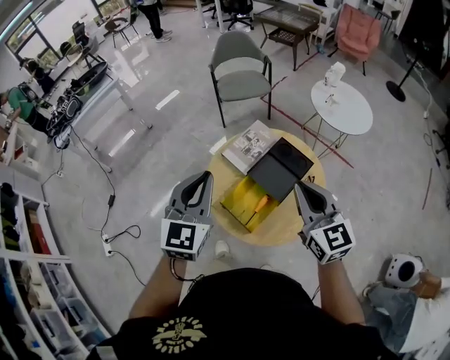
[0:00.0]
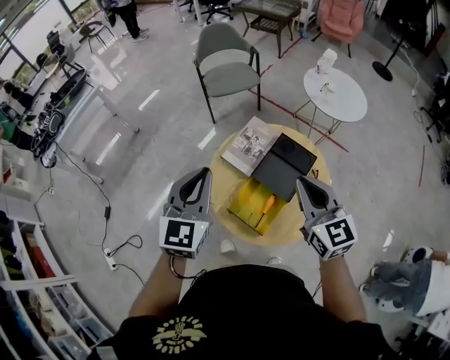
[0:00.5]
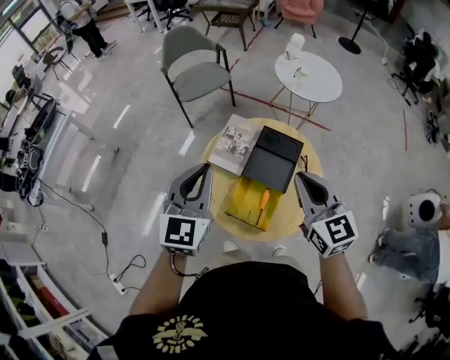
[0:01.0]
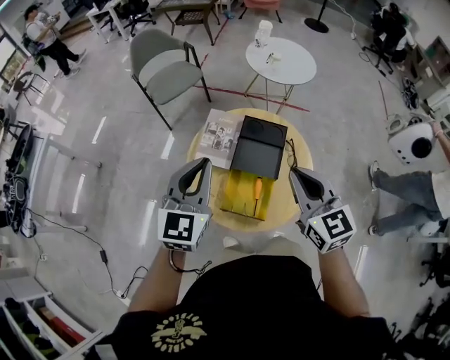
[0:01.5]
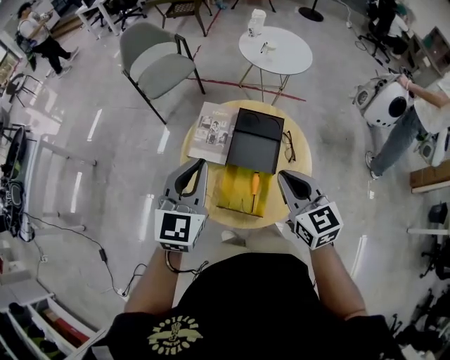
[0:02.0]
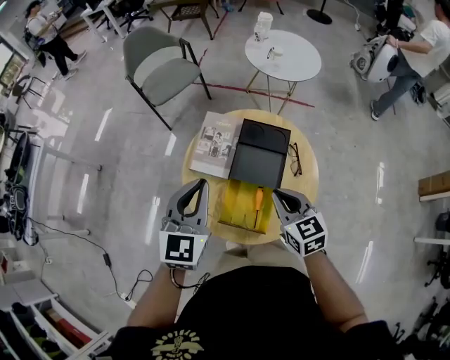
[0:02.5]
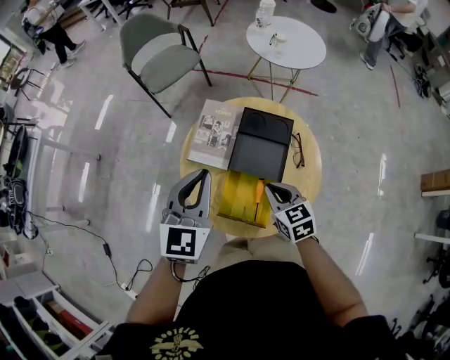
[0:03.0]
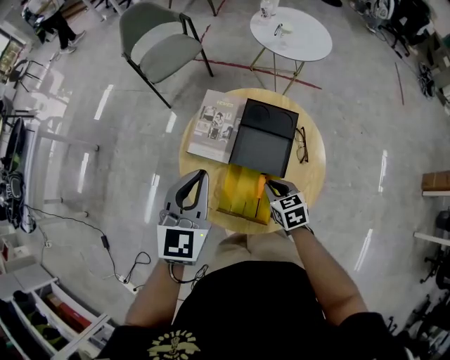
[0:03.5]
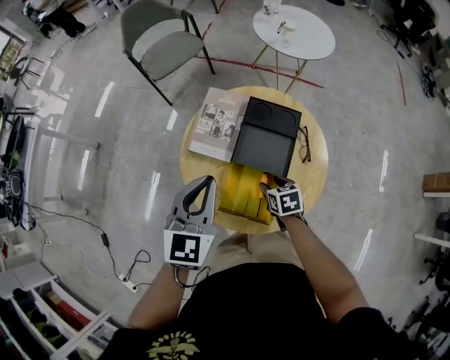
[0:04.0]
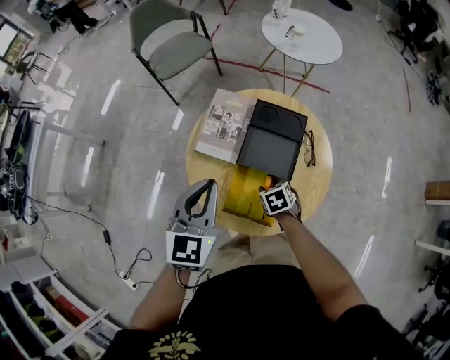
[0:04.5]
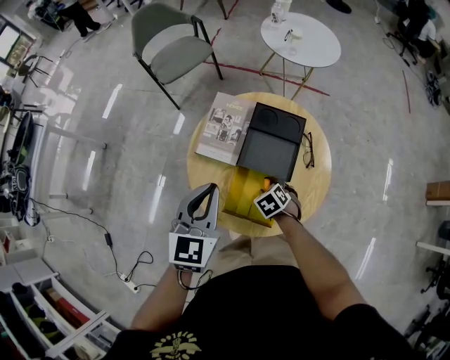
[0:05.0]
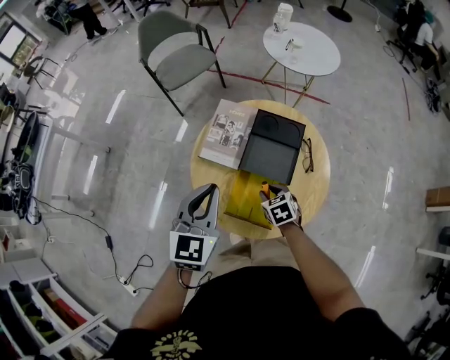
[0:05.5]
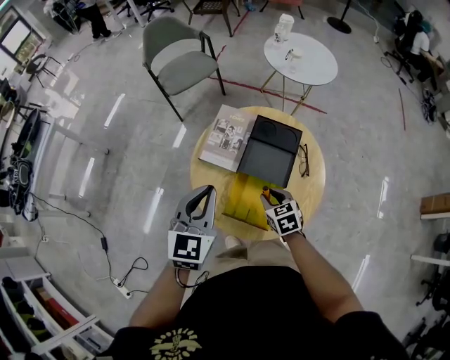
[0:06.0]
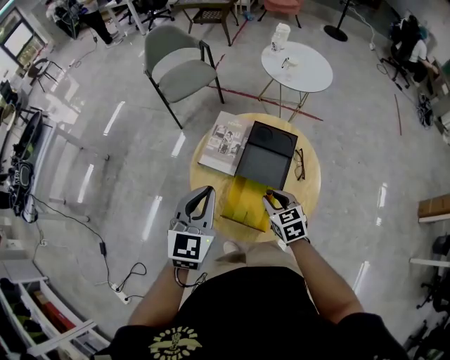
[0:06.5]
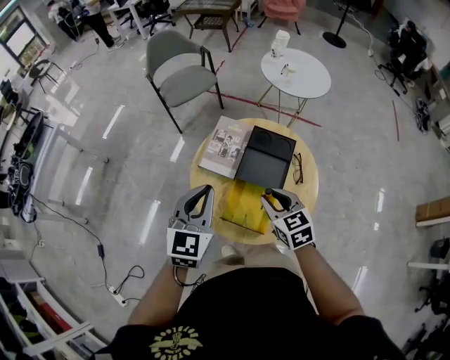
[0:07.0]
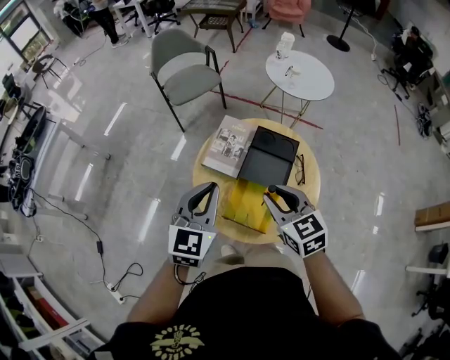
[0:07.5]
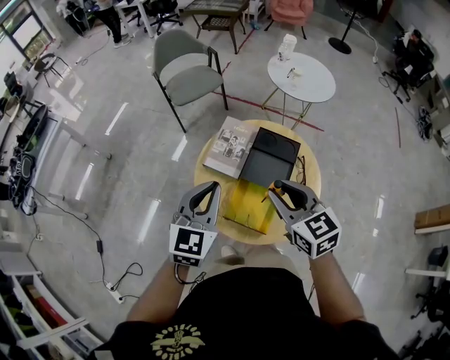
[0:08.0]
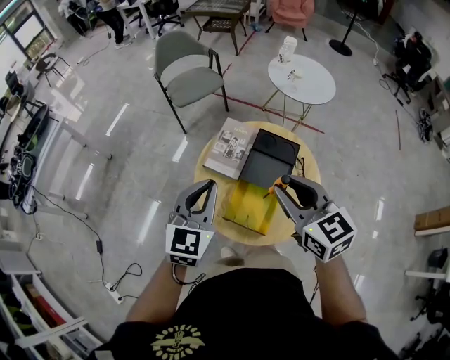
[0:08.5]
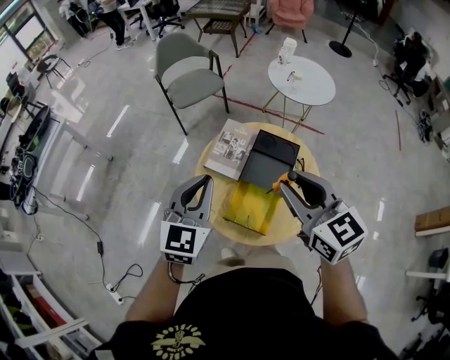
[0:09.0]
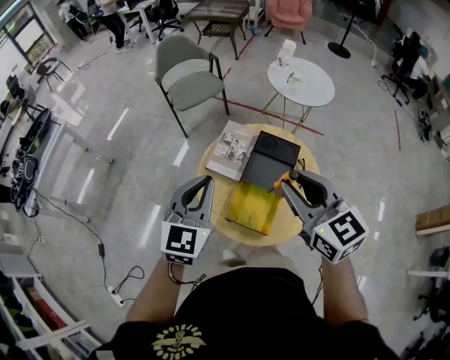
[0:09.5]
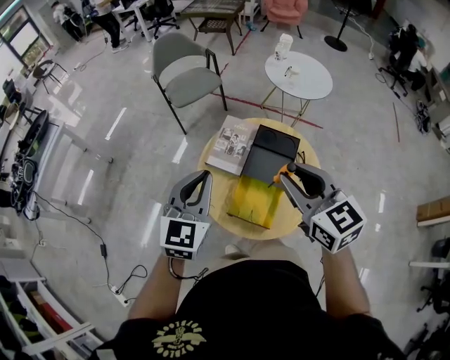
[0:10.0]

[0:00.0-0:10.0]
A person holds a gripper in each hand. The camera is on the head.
0:00.0 to 0:02.0: The right gripper goes roughly 10 cm downward, and swivels roughly 30 degrees; the left gripper ends up approximately 15 cm from where it was, and turns by approximately 30 degrees.
0:02.0 to 0:04.0: The right gripper moves downward, some 30 cm, angles its fingers downward, by about 40 degrees, and opens its fingers; the left gripper travels downward by approximately 10 cm.
0:04.0 to 0:06.0: The right gripper goes approximately 5 cm upward, and closes up.
0:06.0 to 0:08.0: The right gripper is displaced upward by some 25 cm, and swivels some 20 degrees.
0:08.0 to 0:10.0: The right gripper heads upward, covering roughly 10 cm.

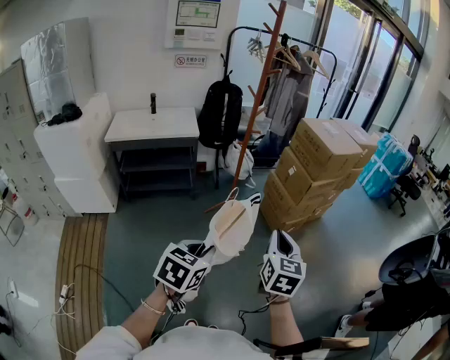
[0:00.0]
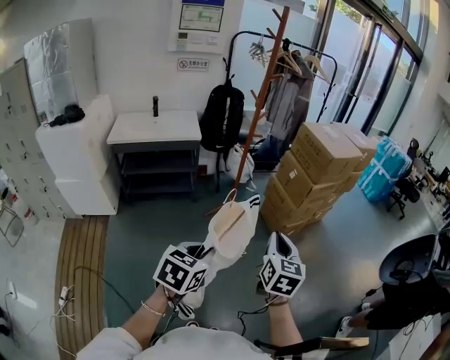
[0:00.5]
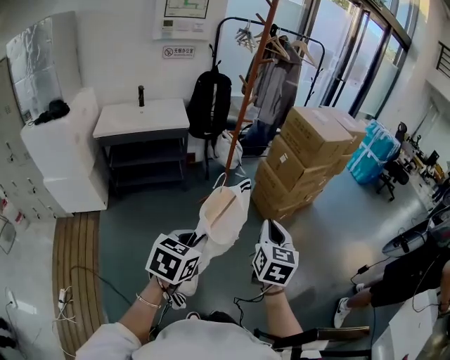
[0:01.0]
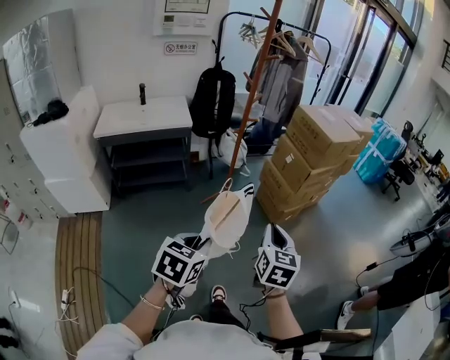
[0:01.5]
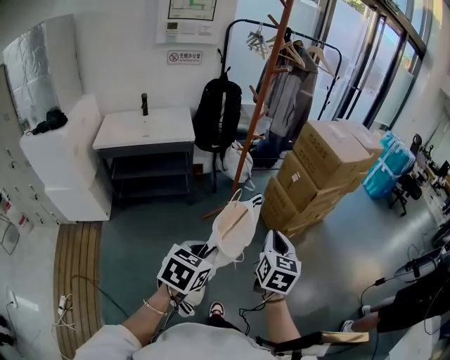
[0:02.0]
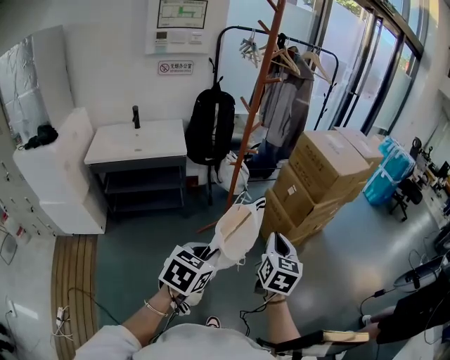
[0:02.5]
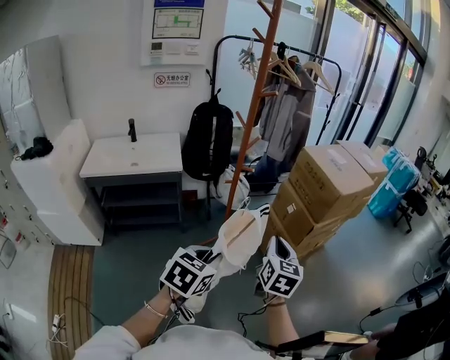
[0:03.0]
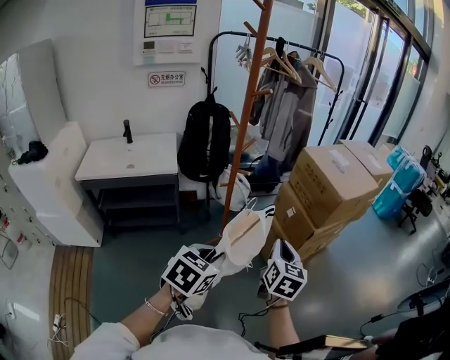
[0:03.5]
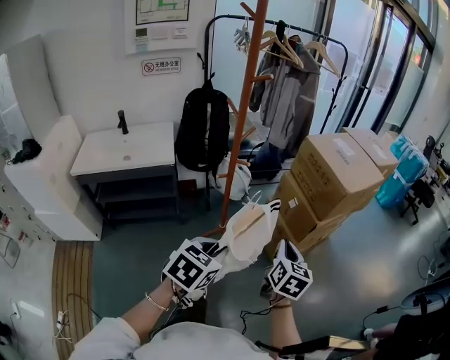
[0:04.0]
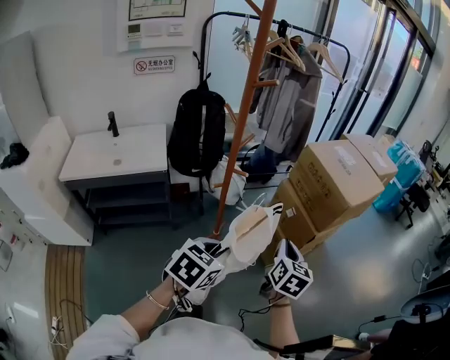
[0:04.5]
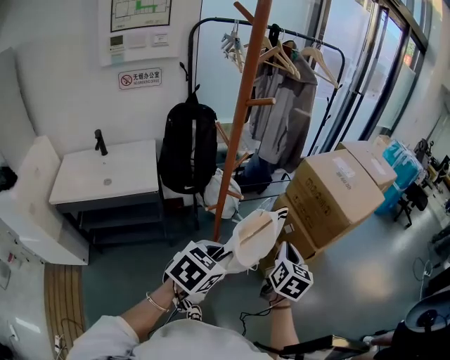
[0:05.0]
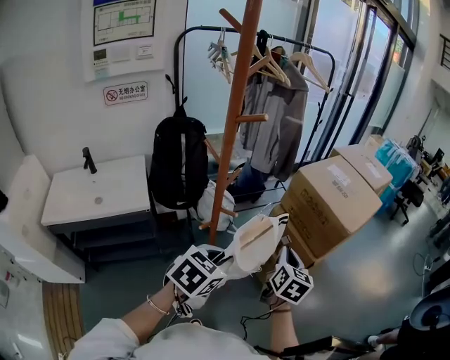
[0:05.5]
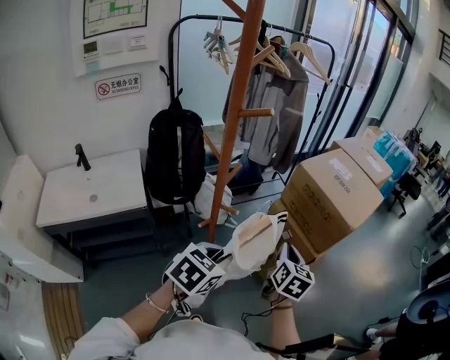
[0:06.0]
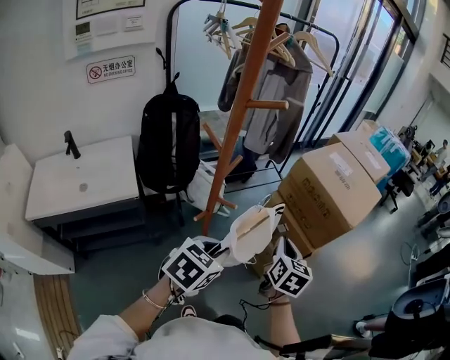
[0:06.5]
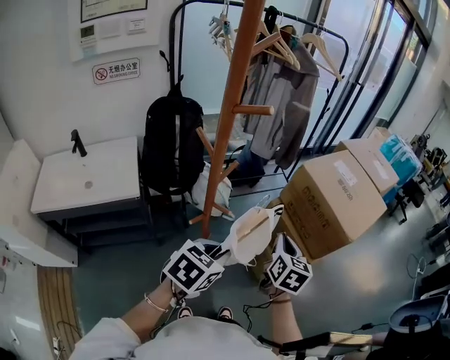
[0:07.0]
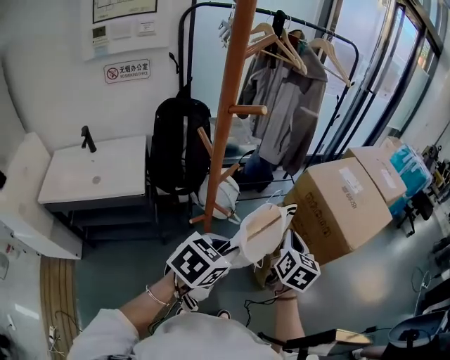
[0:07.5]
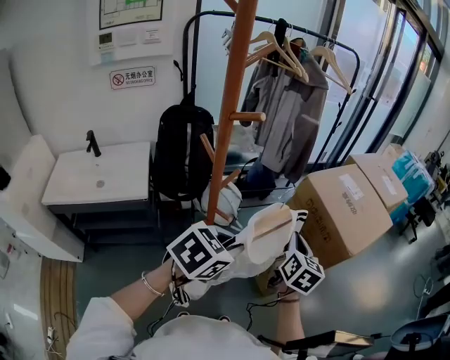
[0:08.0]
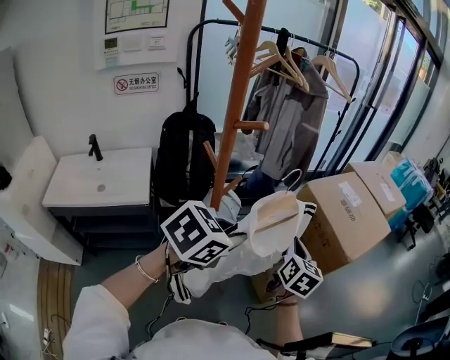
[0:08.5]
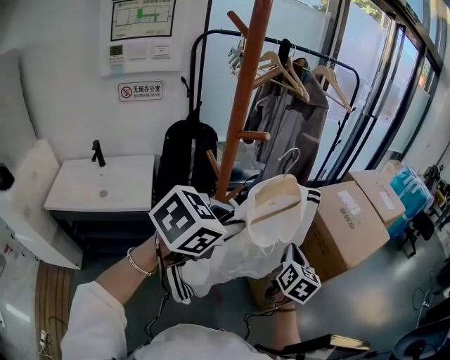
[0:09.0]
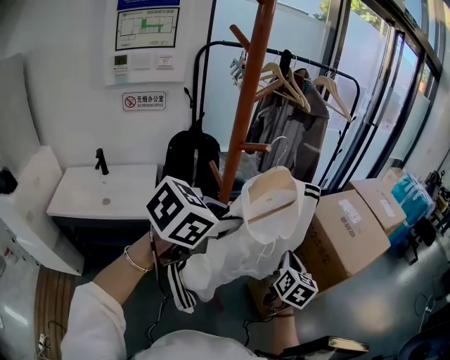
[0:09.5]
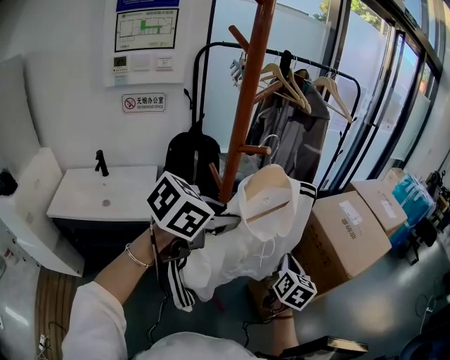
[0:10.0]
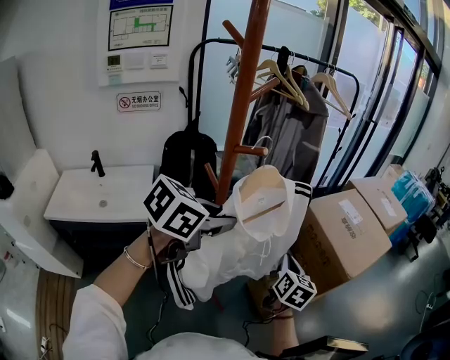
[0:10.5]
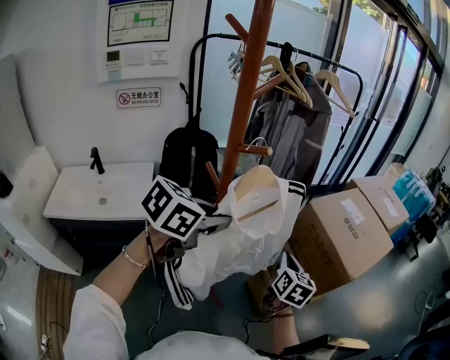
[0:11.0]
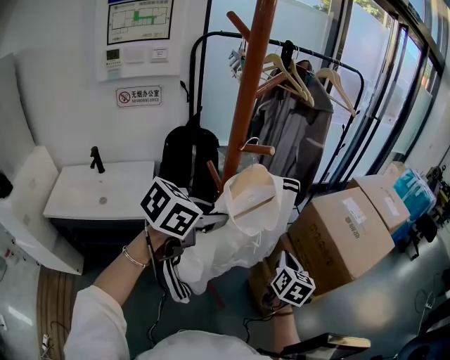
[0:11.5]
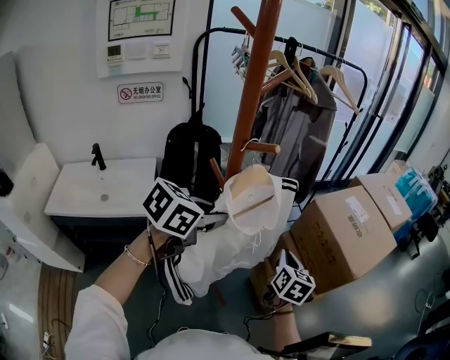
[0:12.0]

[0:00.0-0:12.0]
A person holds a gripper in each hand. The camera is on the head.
0:00.0 to 0:02.0: The left gripper moves forward, about 10 cm; the right gripper is displaced forward and to the left by roughly 10 cm.
0:02.0 to 0:04.0: The grippers both shift forward by some 25 cm.
0:04.0 to 0:06.0: Both grippers travel together forward and to the left, about 20 cm.
0:06.0 to 0:08.0: The right gripper travels forward by roughly 10 cm. The left gripper heads forward and upward, covering approximately 10 cm.
0:08.0 to 0:10.0: The left gripper moves upward and to the left, some 15 cm.
0:10.0 to 0:12.0: The left gripper heads downward and to the left, covering some 10 cm.

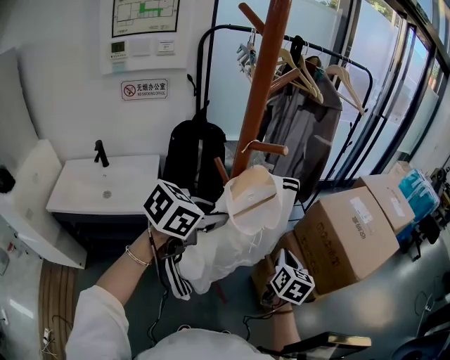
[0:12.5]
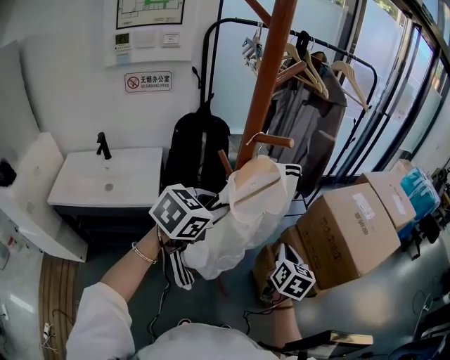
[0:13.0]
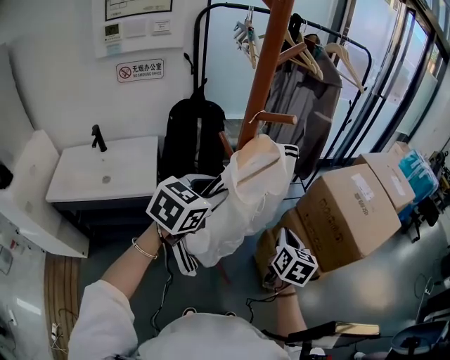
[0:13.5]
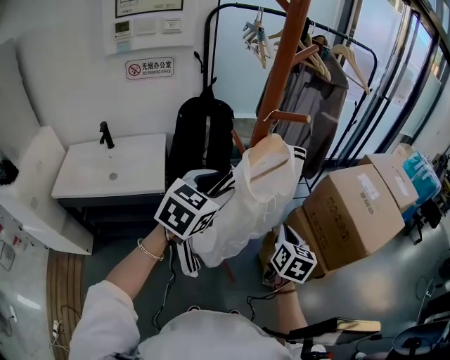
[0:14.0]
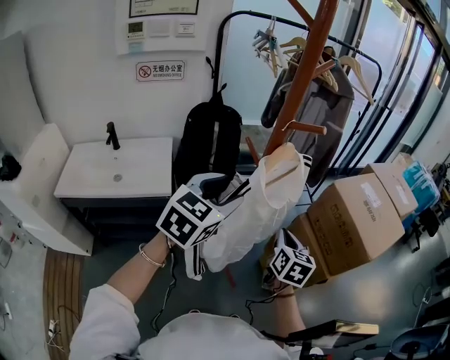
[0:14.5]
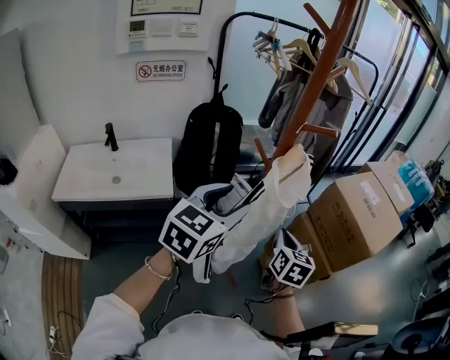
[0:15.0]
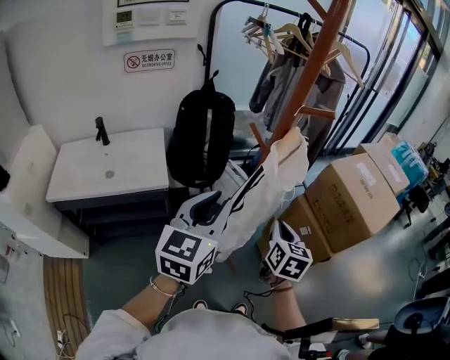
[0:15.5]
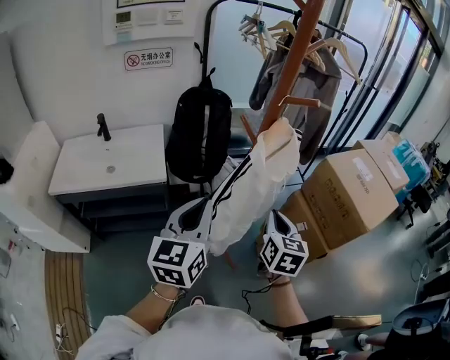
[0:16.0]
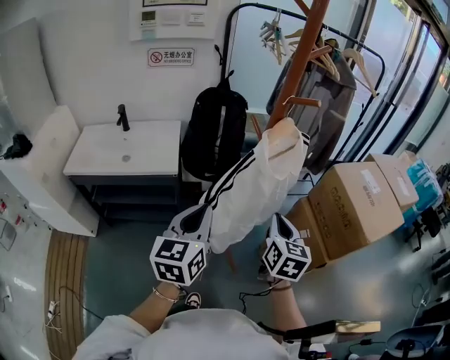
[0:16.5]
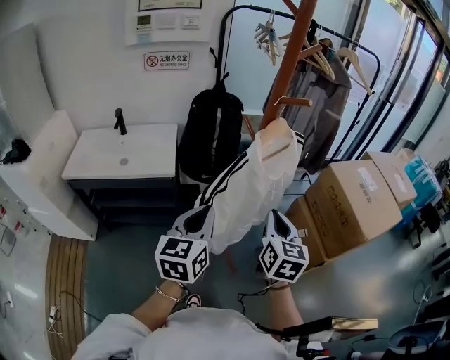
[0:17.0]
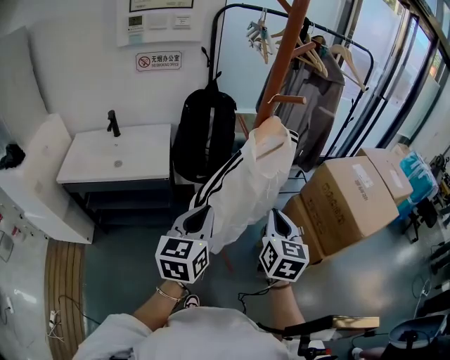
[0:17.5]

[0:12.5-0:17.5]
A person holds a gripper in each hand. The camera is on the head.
0:12.5 to 0:15.0: The left gripper heads backward and to the left, covering approximately 10 cm, turns by about 30 degrees, and opens its fingers. The right gripper moves to the left and backward, about 10 cm.
0:15.0 to 0:17.5: The left gripper goes roughly 10 cm backward and downward, changes its angle by about 30 degrees, and closes its fingers. The right gripper goes some 10 cm upward and backward.
